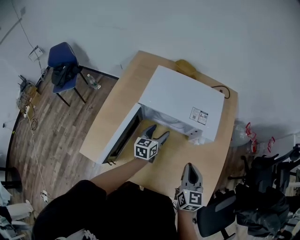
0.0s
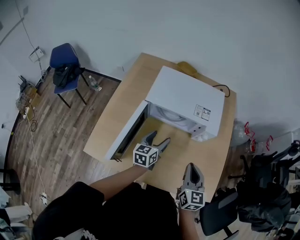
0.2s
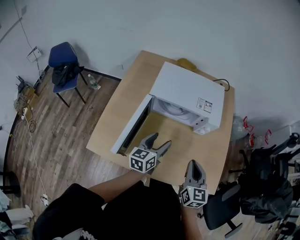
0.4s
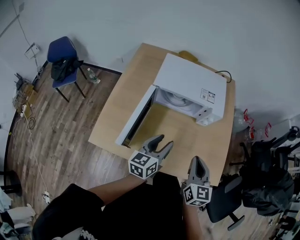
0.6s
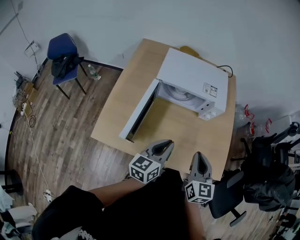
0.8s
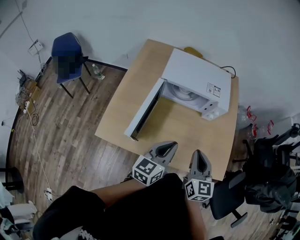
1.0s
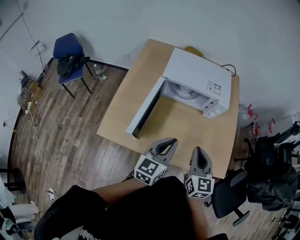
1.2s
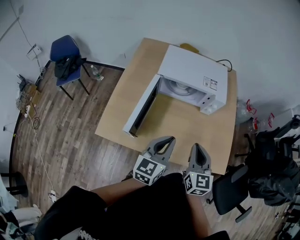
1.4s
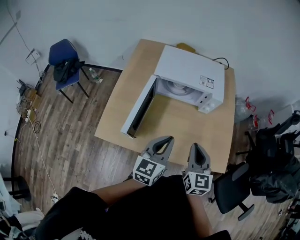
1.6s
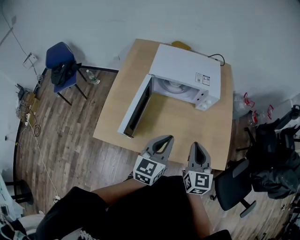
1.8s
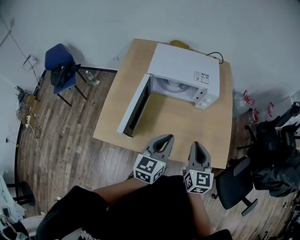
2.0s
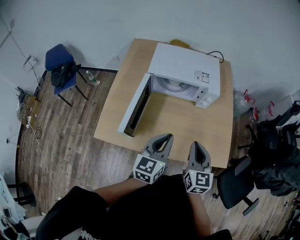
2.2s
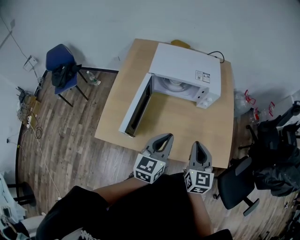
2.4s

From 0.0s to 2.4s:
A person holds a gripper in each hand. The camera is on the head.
From 0.0s to 1.2s: The right gripper goes approximately 15 cm backward and to the left. Meanwhile the left gripper shifts some 30 cm backward and upward, and closes up.
From 1.2s to 2.4s: The grippers move only a little.

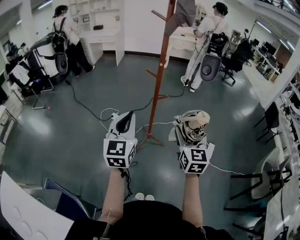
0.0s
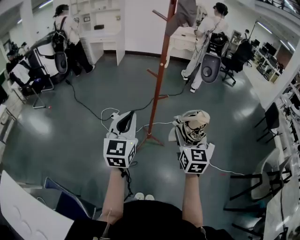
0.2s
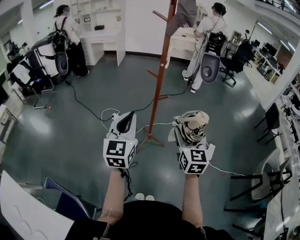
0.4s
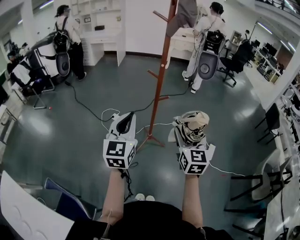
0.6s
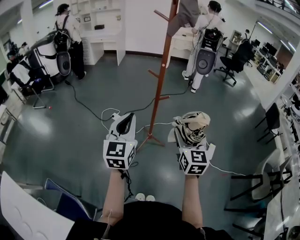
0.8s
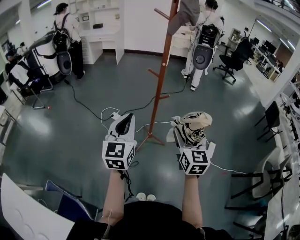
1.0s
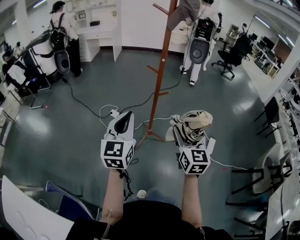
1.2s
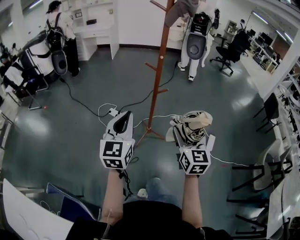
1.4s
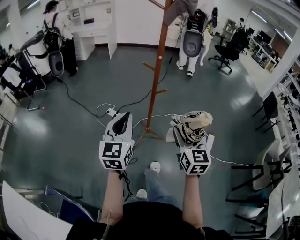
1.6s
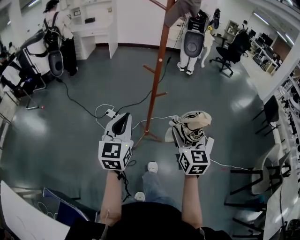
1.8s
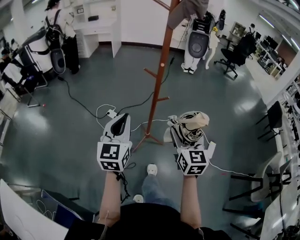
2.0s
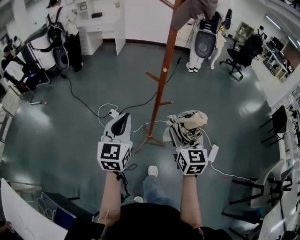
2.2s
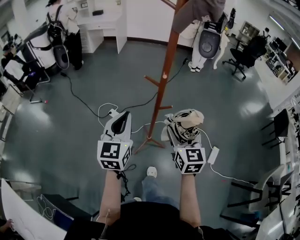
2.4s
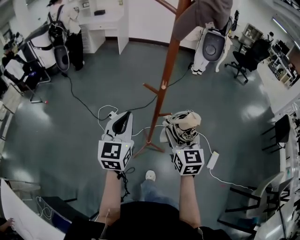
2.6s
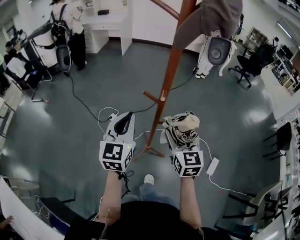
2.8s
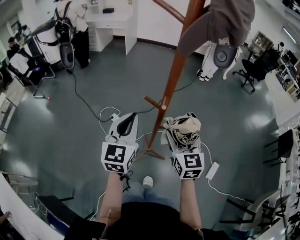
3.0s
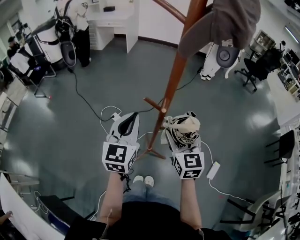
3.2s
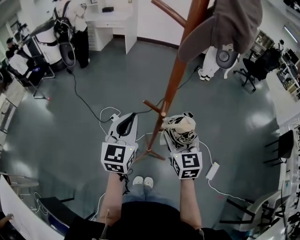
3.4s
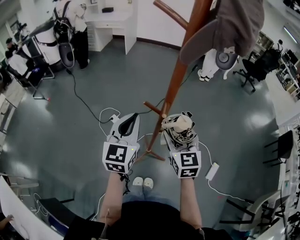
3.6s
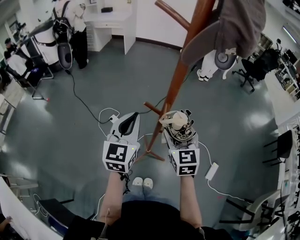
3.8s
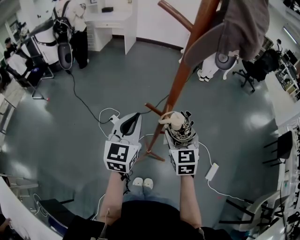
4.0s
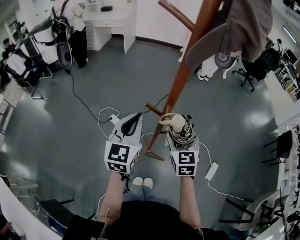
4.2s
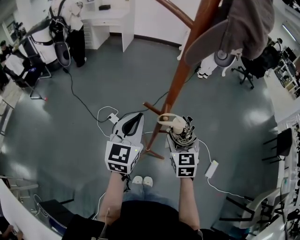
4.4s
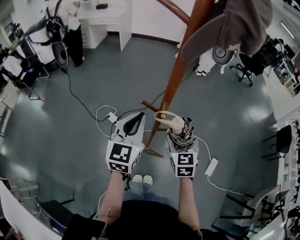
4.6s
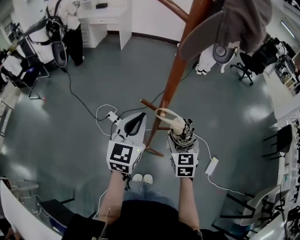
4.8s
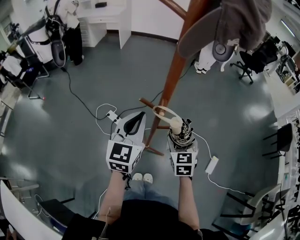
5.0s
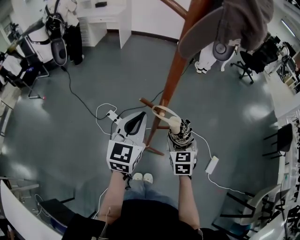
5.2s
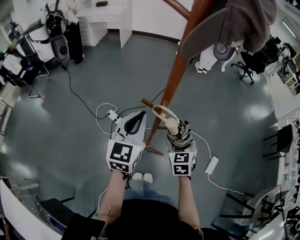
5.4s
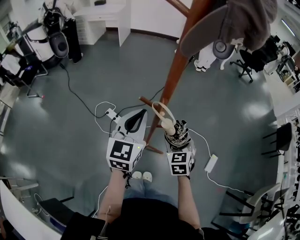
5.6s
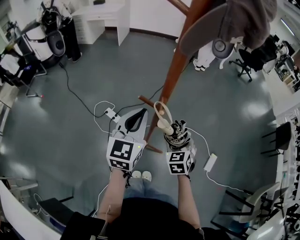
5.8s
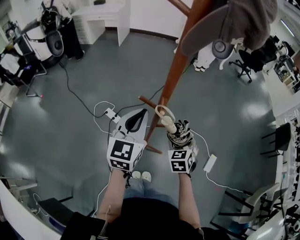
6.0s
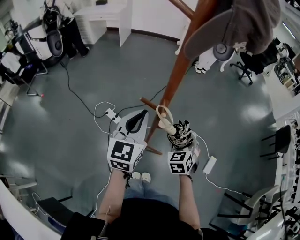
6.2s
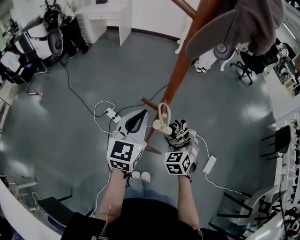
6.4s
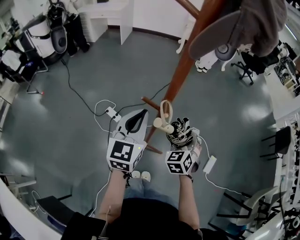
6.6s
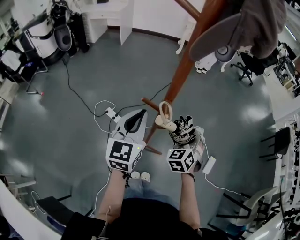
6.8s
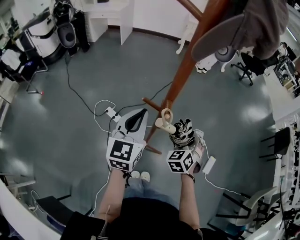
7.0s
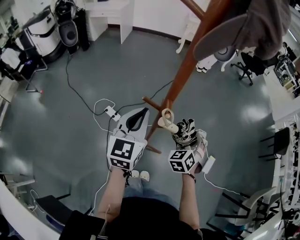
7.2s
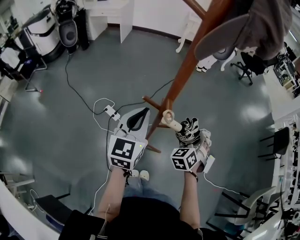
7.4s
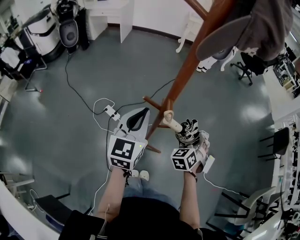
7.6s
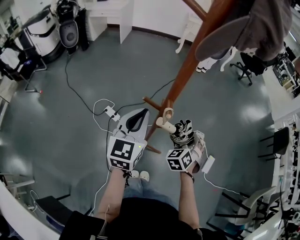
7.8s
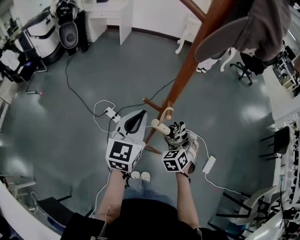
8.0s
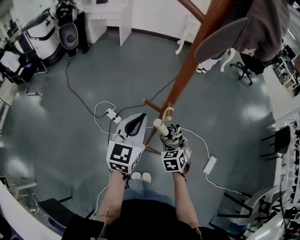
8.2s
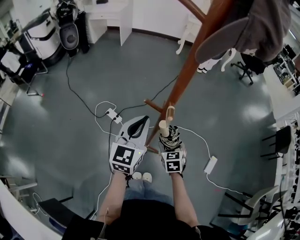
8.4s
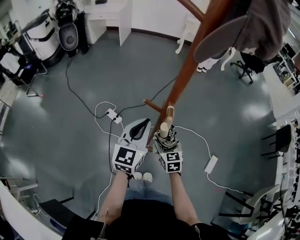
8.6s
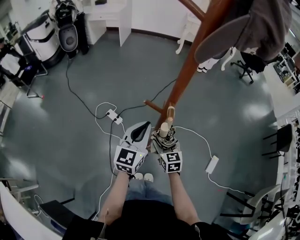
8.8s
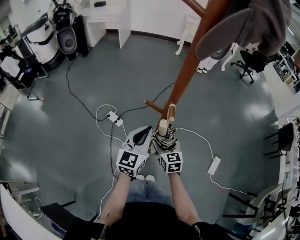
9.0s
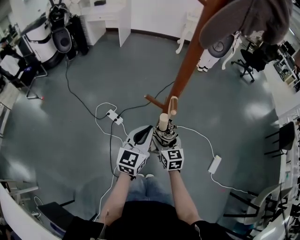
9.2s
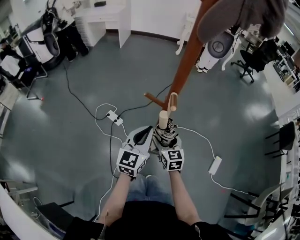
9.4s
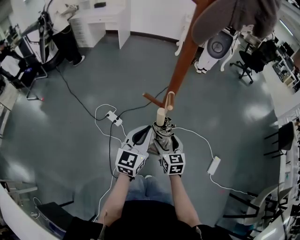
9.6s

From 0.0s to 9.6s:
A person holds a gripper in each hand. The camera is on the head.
From 0.0s to 1.6s: The grippers stay close to where they were, moving slightly.
From 1.6s to 3.2s: Both grippers travel together forward, approximately 35 cm.
From 3.2s to 4.8s: The right gripper goes roughly 10 cm downward.
From 4.8s to 6.4s: The right gripper changes its angle by roughly 20 degrees.
From 6.4s to 8.0s: The grippers stay close to where they were, moving slightly.
From 8.0s to 9.6s: The left gripper moves downward, about 10 cm. Meanwhile the right gripper moves to the left and downward, approximately 10 cm, and swivels some 50 degrees.

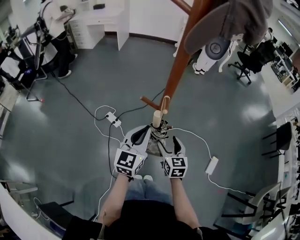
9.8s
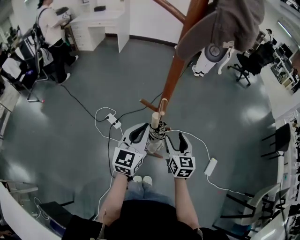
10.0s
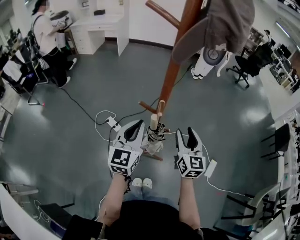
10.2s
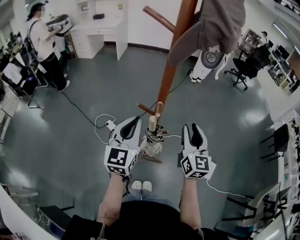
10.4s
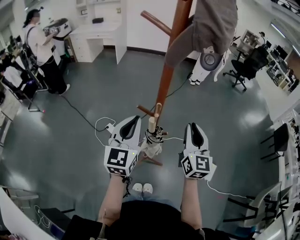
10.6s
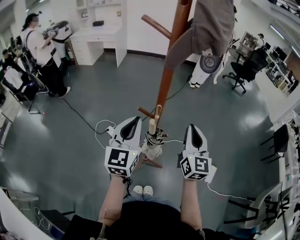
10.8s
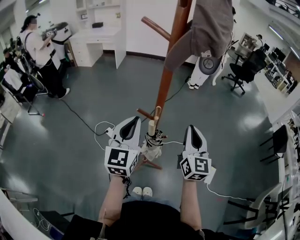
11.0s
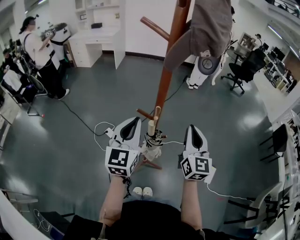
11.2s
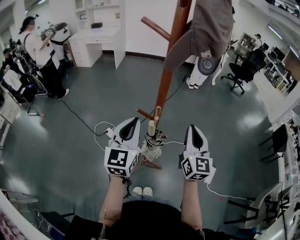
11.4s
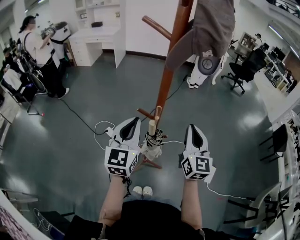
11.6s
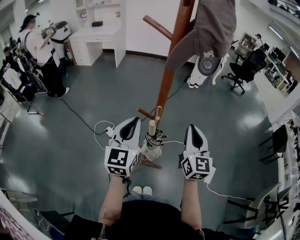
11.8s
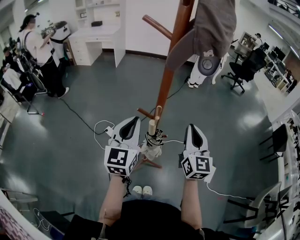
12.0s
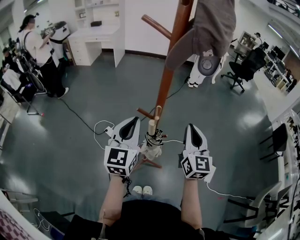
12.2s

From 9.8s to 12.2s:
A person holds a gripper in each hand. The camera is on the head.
From 9.8s to 11.0s: The right gripper travels upward by some 25 cm, rotates approximately 30 degrees, and closes its fingers. The left gripper goes some 15 cm upward.
From 11.0s to 12.2s: Neither gripper changes place.

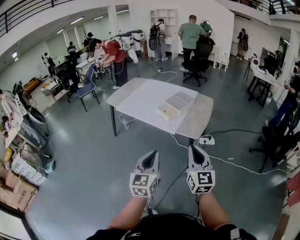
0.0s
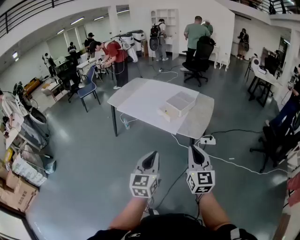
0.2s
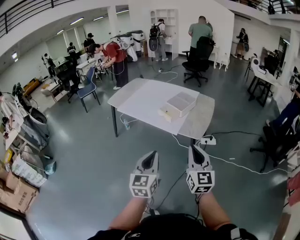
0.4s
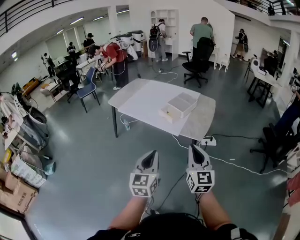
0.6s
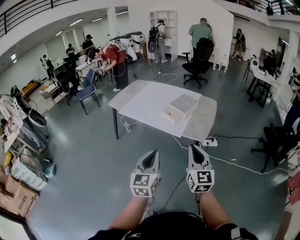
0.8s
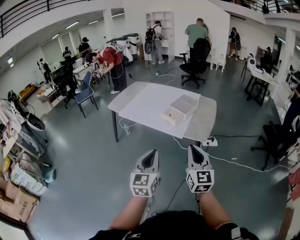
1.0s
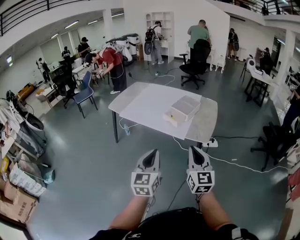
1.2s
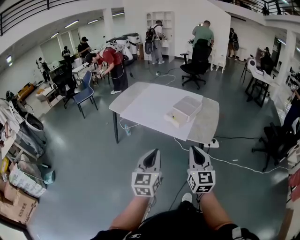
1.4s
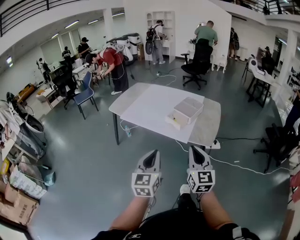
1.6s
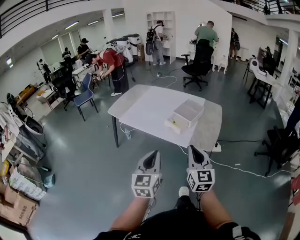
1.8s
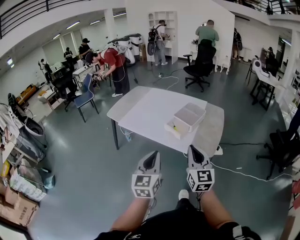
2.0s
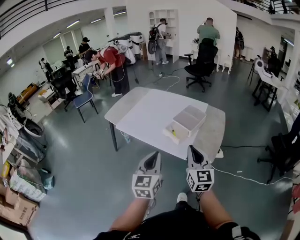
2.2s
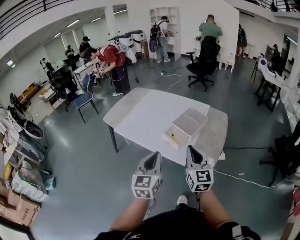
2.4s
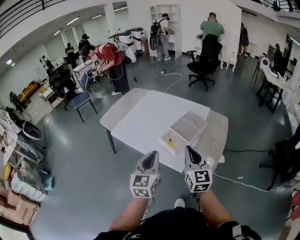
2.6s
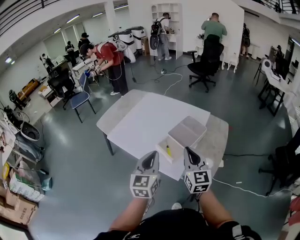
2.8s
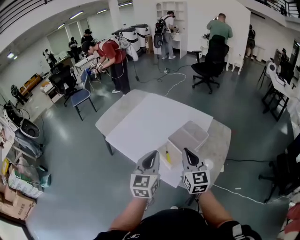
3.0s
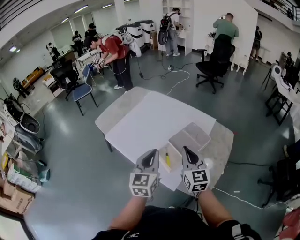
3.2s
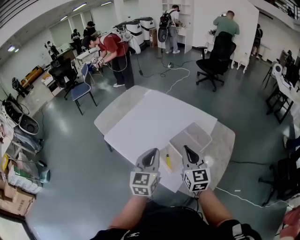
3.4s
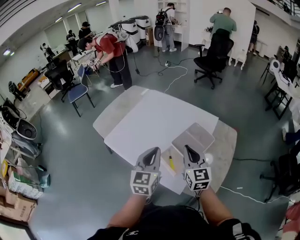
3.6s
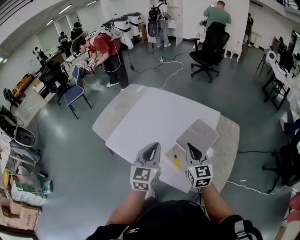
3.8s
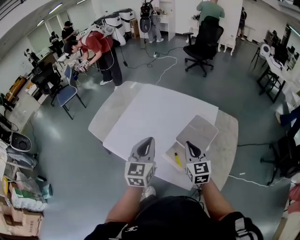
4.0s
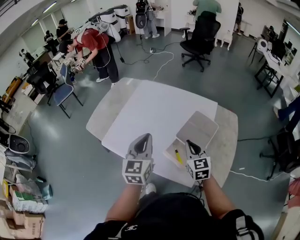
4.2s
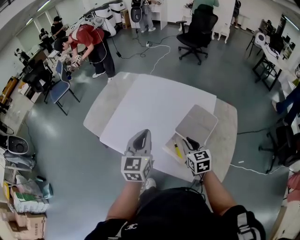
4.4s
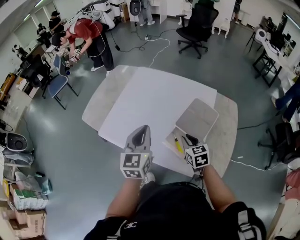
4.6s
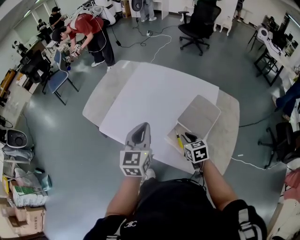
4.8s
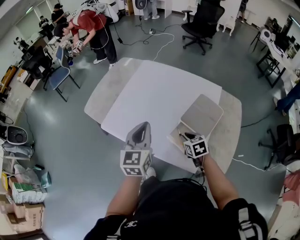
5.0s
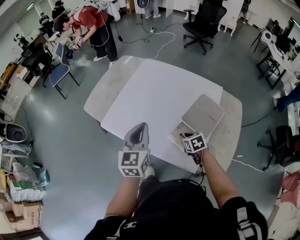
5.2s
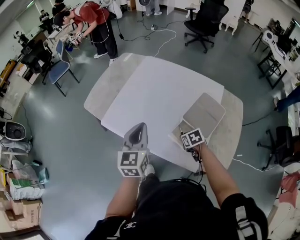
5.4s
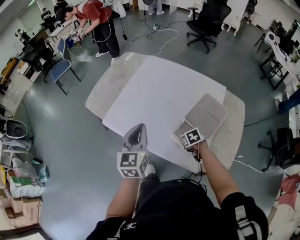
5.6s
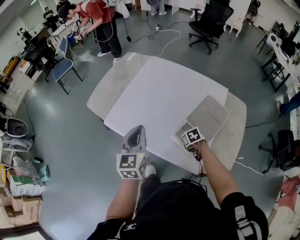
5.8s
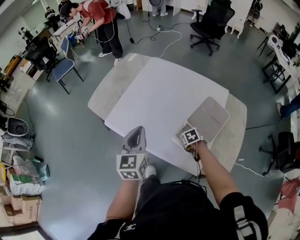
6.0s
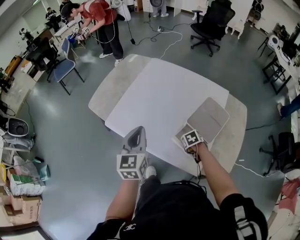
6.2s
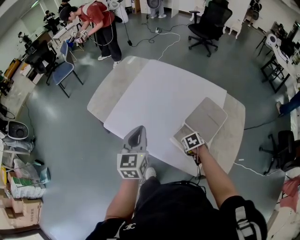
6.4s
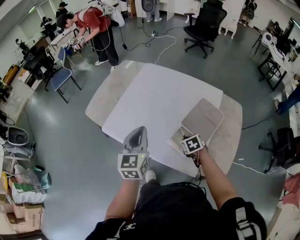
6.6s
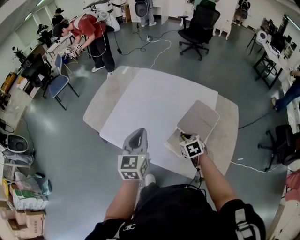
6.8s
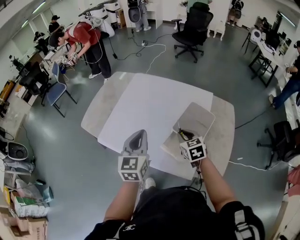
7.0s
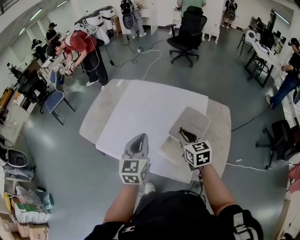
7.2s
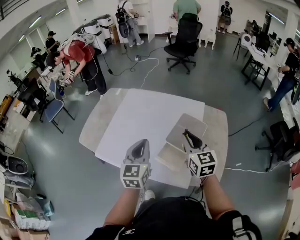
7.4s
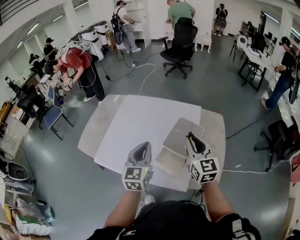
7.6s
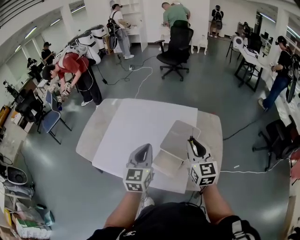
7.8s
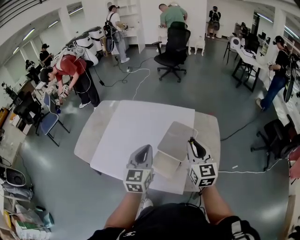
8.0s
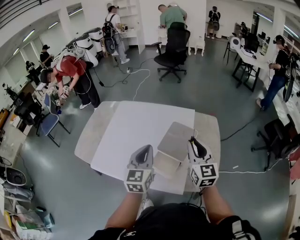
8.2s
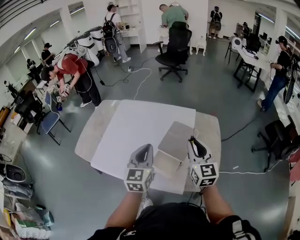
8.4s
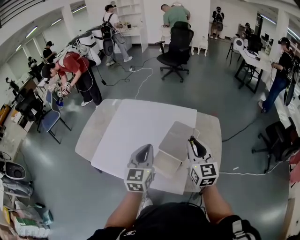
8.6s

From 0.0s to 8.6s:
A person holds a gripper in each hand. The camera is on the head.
From 0.0s to 1.4s: Both grippers move to the left and forward, some 10 cm.
From 1.4s to 2.8s: Both grippers move forward, some 35 cm.
From 2.8s to 4.4s: The left gripper shifts roughly 25 cm forward and to the left. Meanwhile the right gripper shifts approximately 25 cm forward and downward, and rotates about 30 degrees.
From 4.4s to 5.8s: The left gripper travels to the left by about 10 cm. The right gripper is displaced downward by some 20 cm, and tips its fingers downward by roughly 50 degrees.
From 5.8s to 7.2s: The left gripper changes place by roughly 10 cm. Meanwhile the right gripper goes approximately 25 cm upward, and angles its fingers upward, by some 50 degrees.
From 7.2s to 8.6s: The right gripper shifts roughly 15 cm to the right and upward, and rotates roughly 30 degrees. Meanwhile the left gripper heads to the right, covering about 10 cm.
